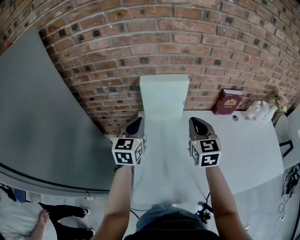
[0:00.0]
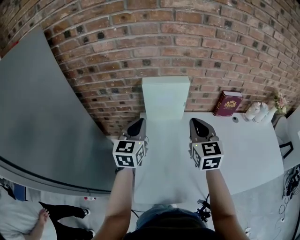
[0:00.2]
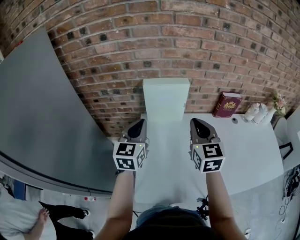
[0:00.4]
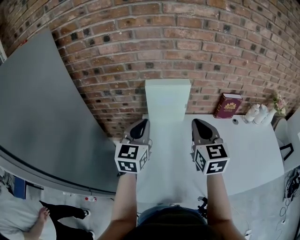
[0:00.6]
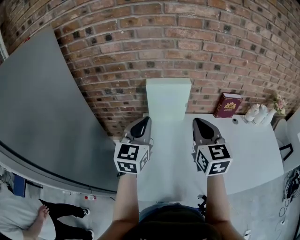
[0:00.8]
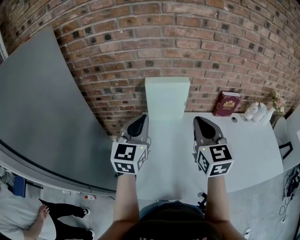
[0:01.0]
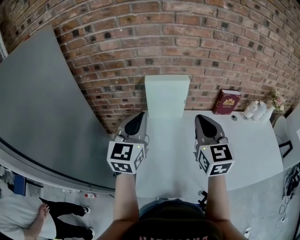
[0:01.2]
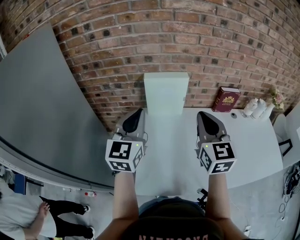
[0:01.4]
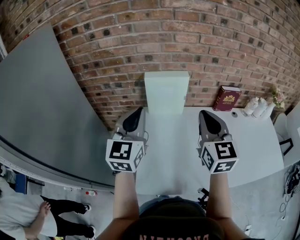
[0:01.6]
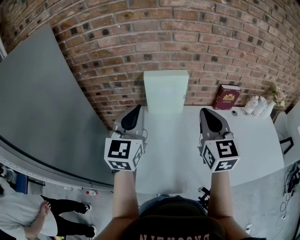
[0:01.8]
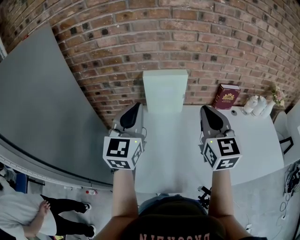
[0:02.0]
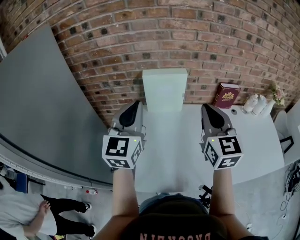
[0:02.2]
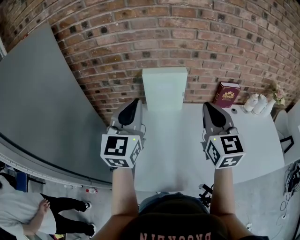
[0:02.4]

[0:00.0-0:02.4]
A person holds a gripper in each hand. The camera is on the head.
0:00.0 to 0:01.2: Both grippers travel together upward and backward, approximately 15 cm.
0:01.2 to 0:02.4: The grippers stay close to where they were, moving slightly.

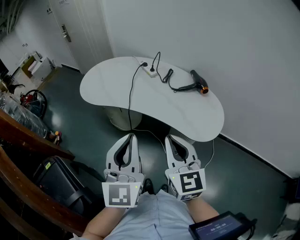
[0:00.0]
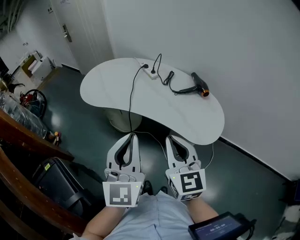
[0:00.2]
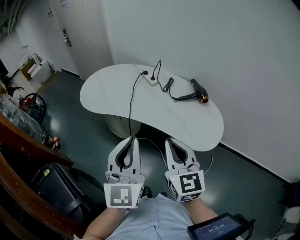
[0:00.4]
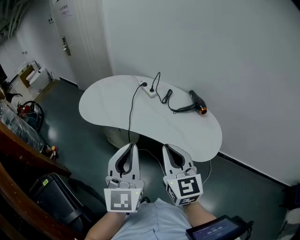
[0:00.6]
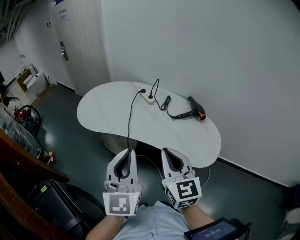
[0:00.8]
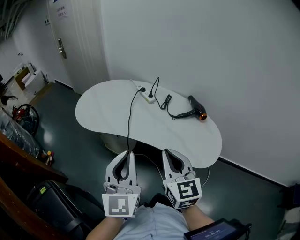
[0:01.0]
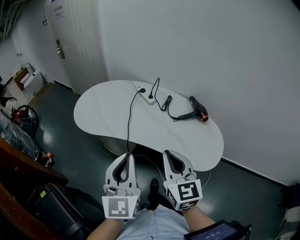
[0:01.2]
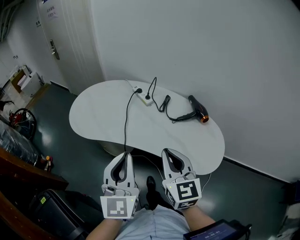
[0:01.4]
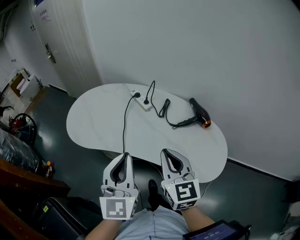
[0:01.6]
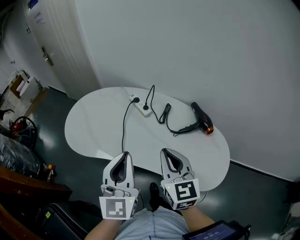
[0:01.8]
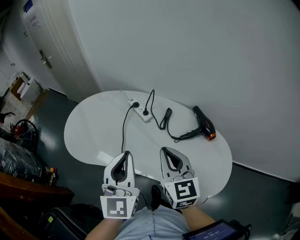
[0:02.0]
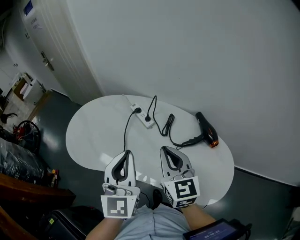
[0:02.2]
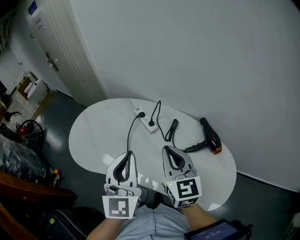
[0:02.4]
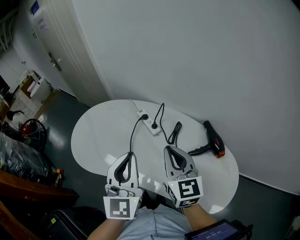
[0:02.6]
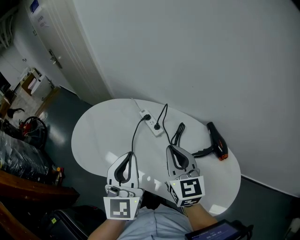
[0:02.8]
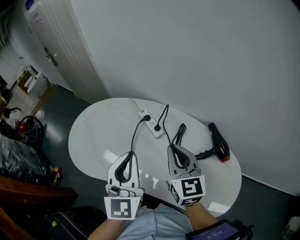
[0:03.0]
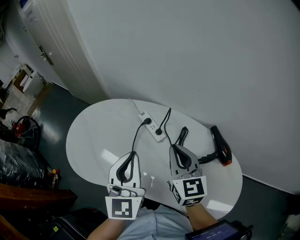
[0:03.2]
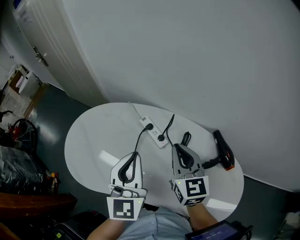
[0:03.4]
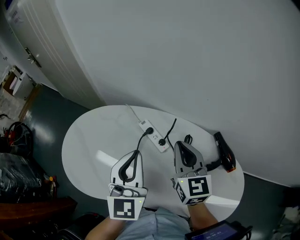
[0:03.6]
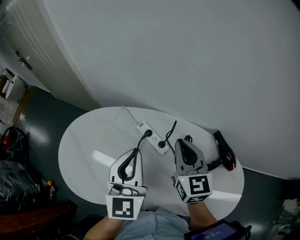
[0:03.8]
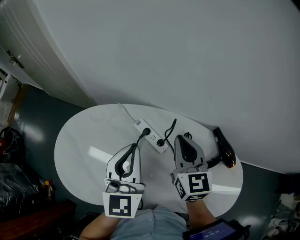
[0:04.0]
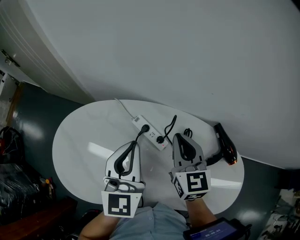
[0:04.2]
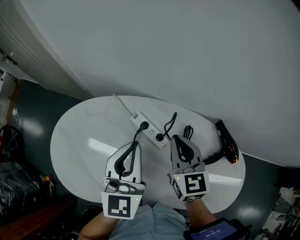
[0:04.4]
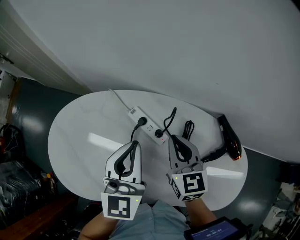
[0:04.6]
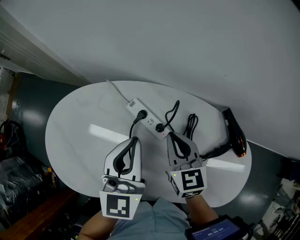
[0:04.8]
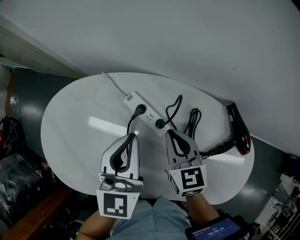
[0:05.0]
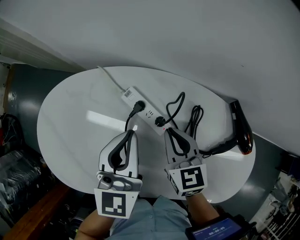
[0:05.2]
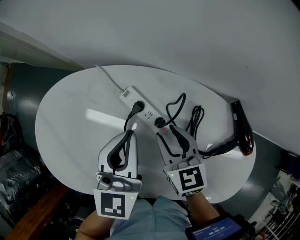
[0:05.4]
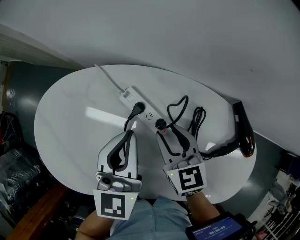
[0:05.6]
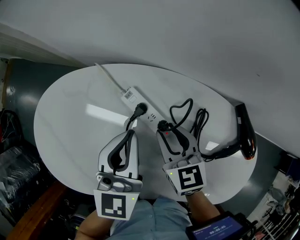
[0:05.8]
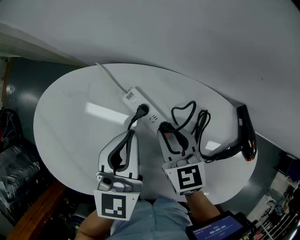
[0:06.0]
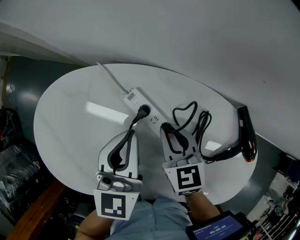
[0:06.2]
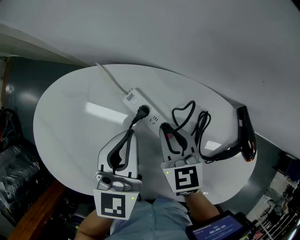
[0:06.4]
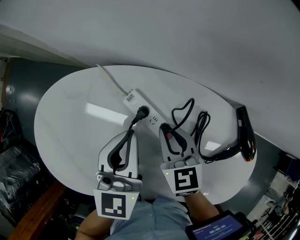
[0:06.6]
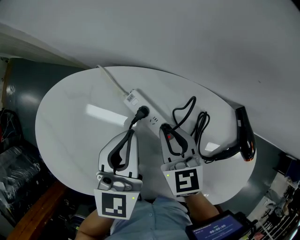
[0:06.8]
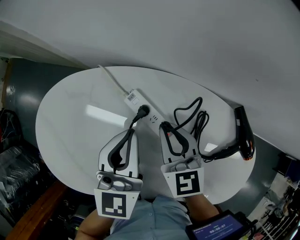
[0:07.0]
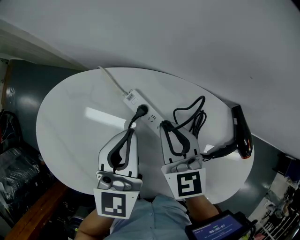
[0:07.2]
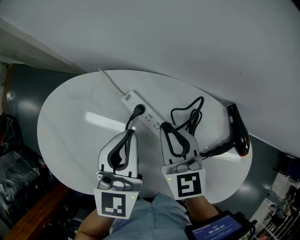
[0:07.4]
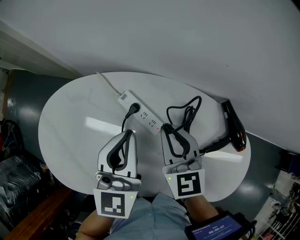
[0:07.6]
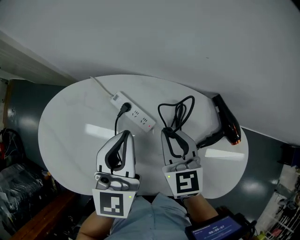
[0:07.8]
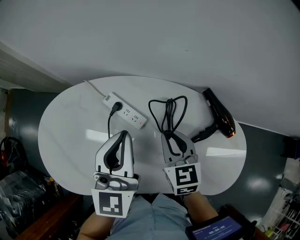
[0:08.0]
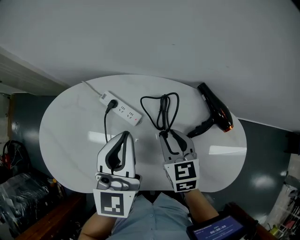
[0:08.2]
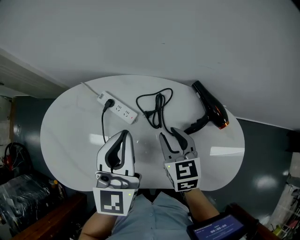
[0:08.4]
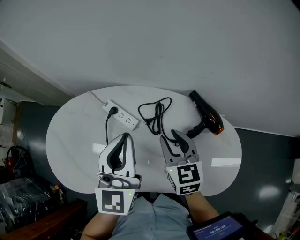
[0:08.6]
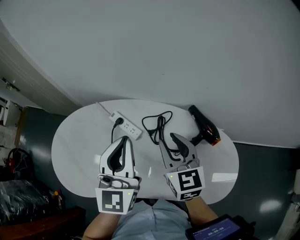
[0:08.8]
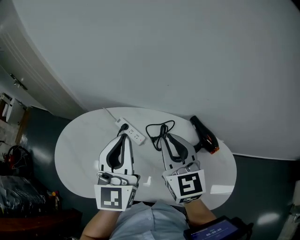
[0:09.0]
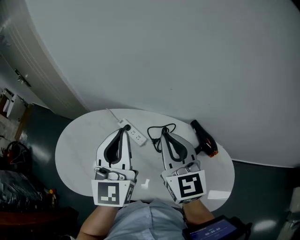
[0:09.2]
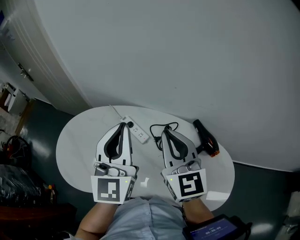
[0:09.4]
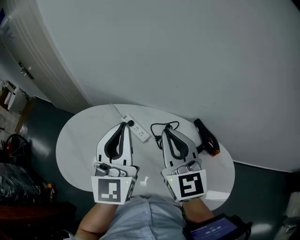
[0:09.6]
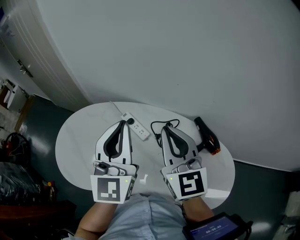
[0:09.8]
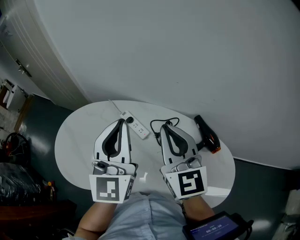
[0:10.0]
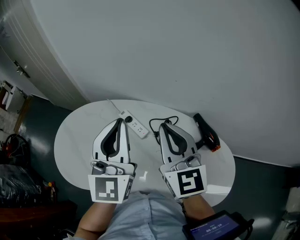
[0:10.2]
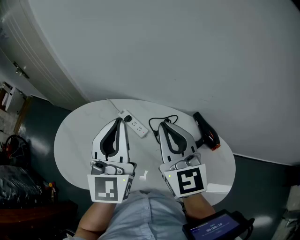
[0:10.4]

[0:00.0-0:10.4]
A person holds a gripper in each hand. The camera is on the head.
0:00.0 to 0:01.4: The two grippers go roughly 15 cm forward.
0:01.4 to 0:03.0: Both grippers travel together forward, approximately 25 cm.
0:03.0 to 0:04.4: The left gripper goes roughly 15 cm forward. The right gripper heads forward and downward, covering about 15 cm.
0:04.4 to 0:06.0: The two grippers go roughly 10 cm downward. The right gripper opens up.
0:06.0 to 0:07.4: The right gripper goes roughly 10 cm upward.
0:07.4 to 0:09.0: The left gripper travels upward, backward and to the right by approximately 20 cm, and swivels roughly 30 degrees. Meanwhile the right gripper heads upward, to the right and backward, covering roughly 20 cm.
0:09.0 to 0:10.4: The right gripper travels upward by some 5 cm.

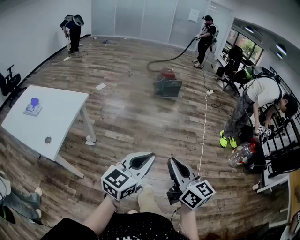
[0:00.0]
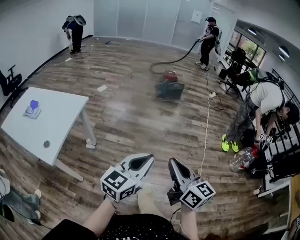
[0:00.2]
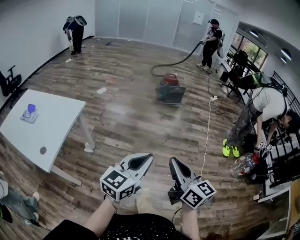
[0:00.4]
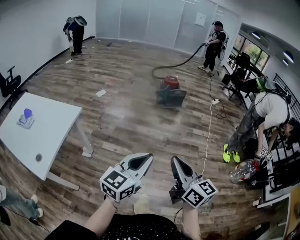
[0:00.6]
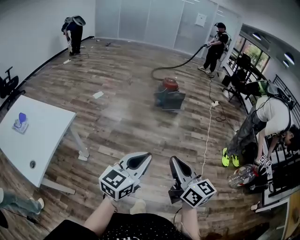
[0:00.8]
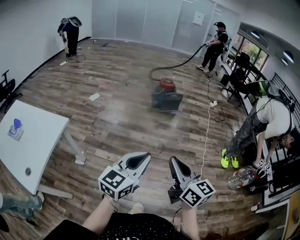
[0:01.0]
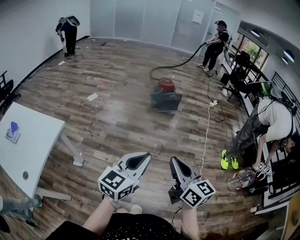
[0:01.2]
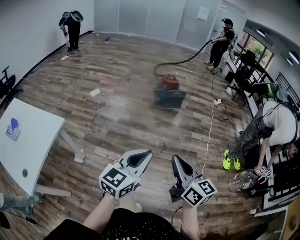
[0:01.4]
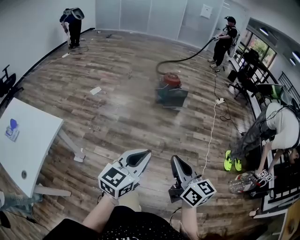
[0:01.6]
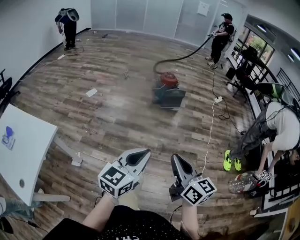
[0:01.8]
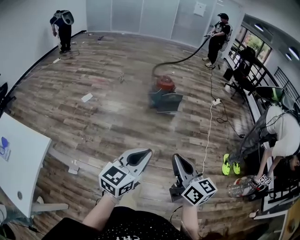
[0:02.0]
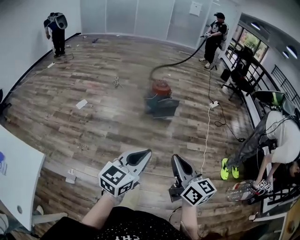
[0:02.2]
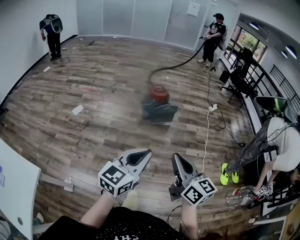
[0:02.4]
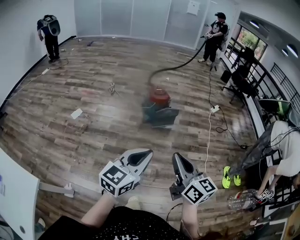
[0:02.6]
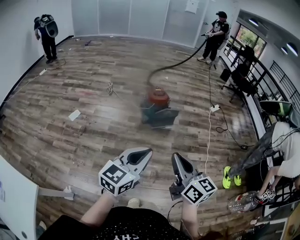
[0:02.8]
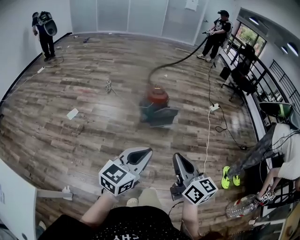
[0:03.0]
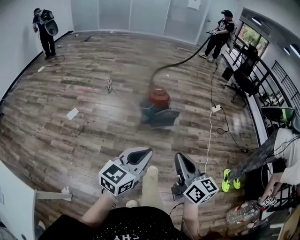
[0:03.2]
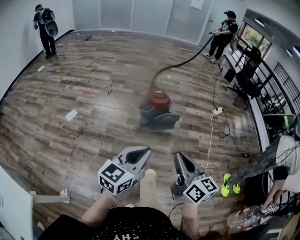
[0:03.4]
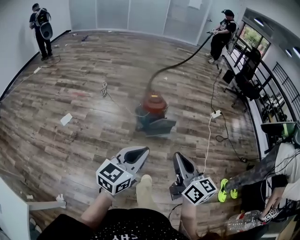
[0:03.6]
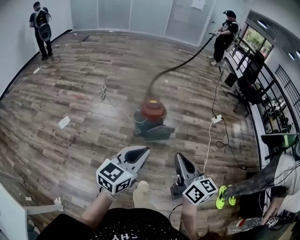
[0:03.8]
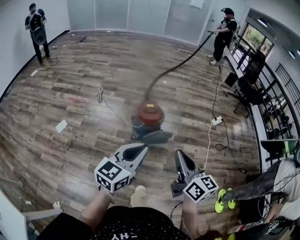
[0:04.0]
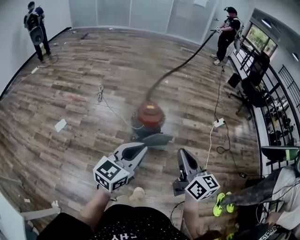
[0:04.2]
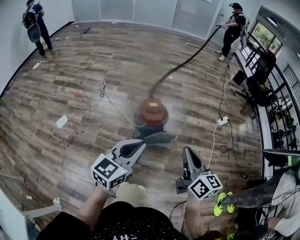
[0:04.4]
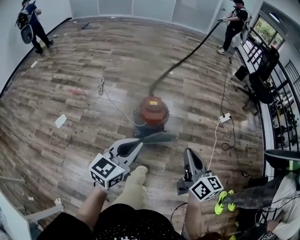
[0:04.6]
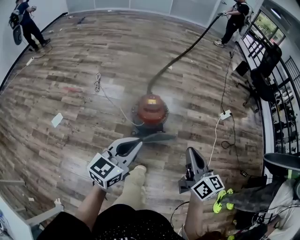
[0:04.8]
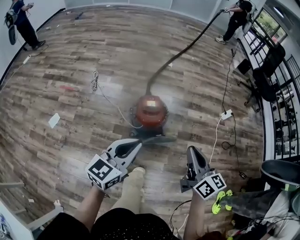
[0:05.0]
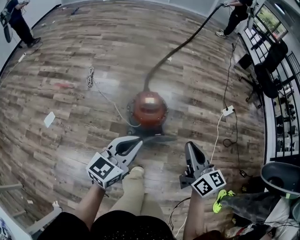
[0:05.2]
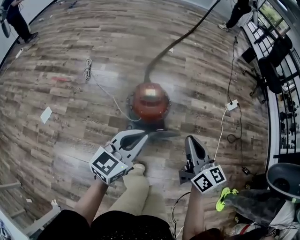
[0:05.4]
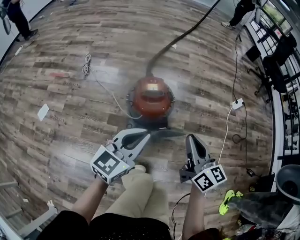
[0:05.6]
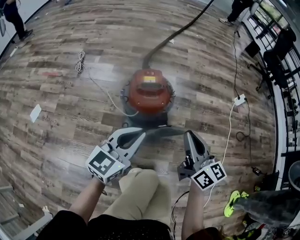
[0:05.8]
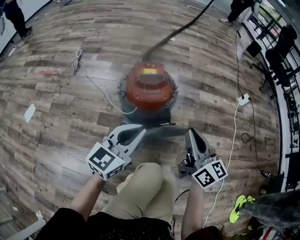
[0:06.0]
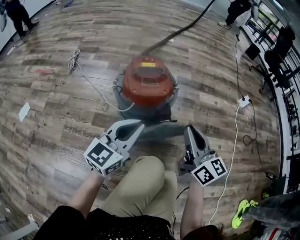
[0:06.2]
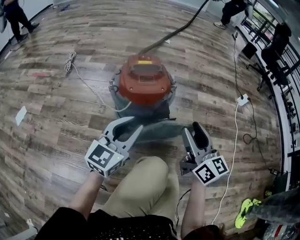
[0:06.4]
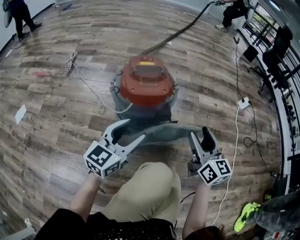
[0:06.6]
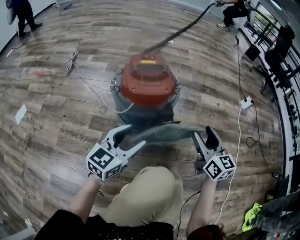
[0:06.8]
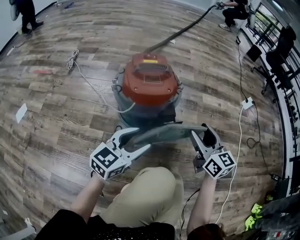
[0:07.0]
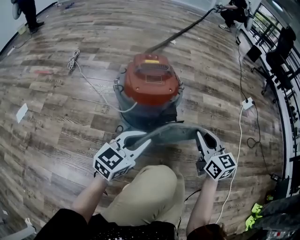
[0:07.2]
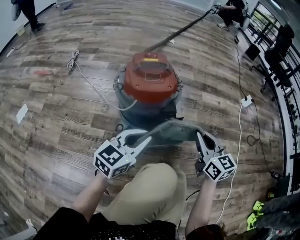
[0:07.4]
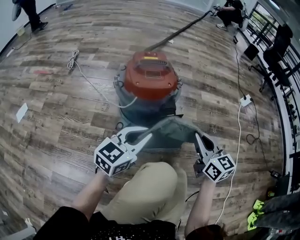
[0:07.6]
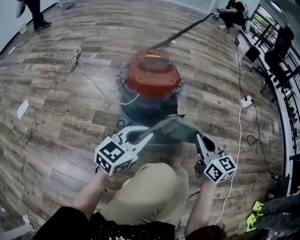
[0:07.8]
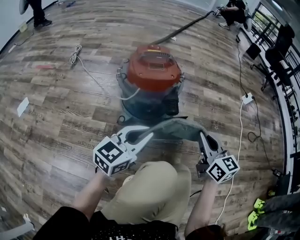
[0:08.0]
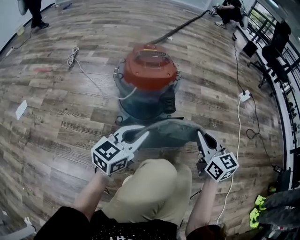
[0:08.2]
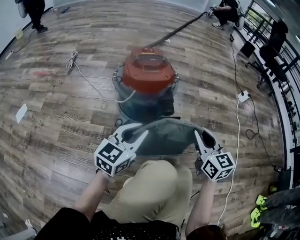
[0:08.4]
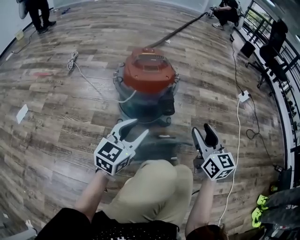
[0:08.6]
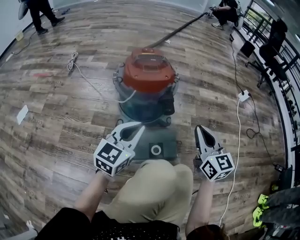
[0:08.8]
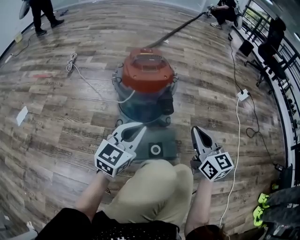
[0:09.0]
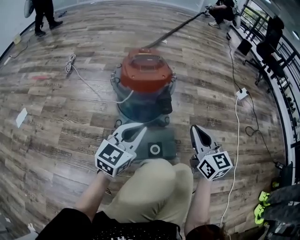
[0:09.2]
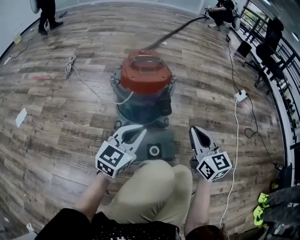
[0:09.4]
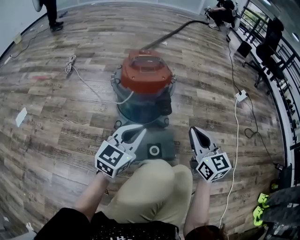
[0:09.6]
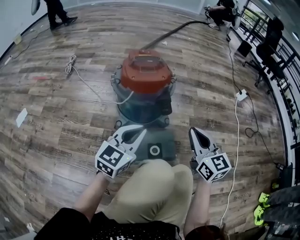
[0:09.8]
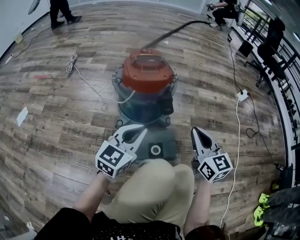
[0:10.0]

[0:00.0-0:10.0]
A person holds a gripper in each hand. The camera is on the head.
0:00.0 to 0:01.4: Both grippers travel together forward, roughly 35 cm.
0:01.4 to 0:02.8: The pair of grippers is taken forward, some 50 cm.
0:02.8 to 0:04.2: The two grippers travel together, forward, about 40 cm.
0:04.2 to 0:05.8: Both grippers travel together downward and forward, approximately 40 cm.
0:05.8 to 0:07.2: Both grippers move downward, about 25 cm. The left gripper opens and closes again; the right gripper rotates roughly 20 degrees, and opens and closes again.
0:07.2 to 0:08.6: The right gripper is displaced backward by approximately 5 cm, and opens its fingers. Meanwhile the left gripper opens its fingers.
0:08.6 to 0:10.0: The left gripper closes its fingers. Meanwhile the right gripper closes its fingers.

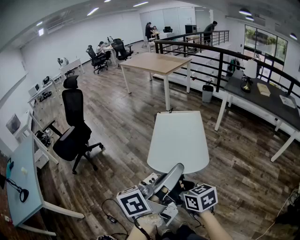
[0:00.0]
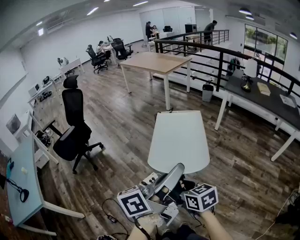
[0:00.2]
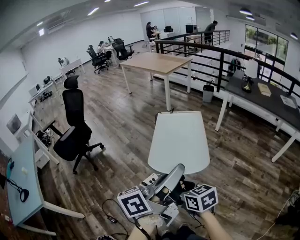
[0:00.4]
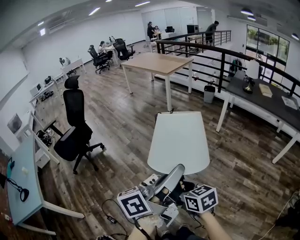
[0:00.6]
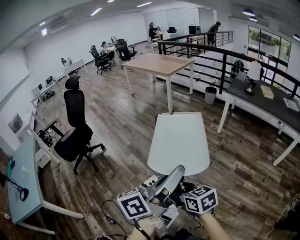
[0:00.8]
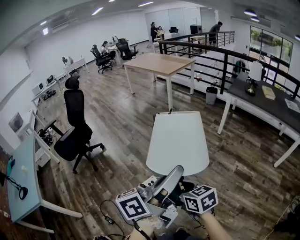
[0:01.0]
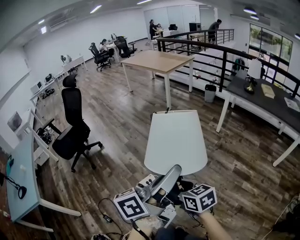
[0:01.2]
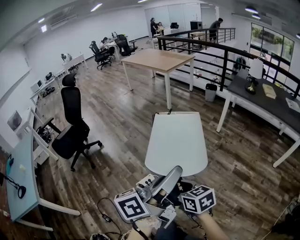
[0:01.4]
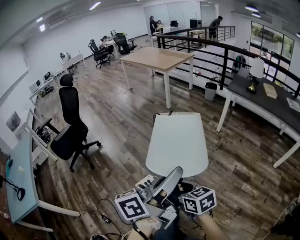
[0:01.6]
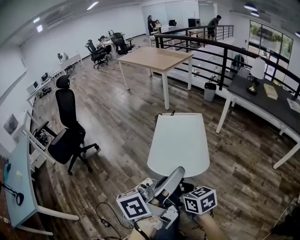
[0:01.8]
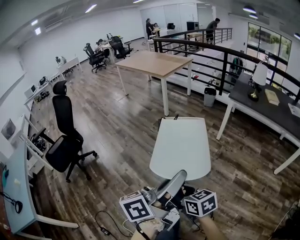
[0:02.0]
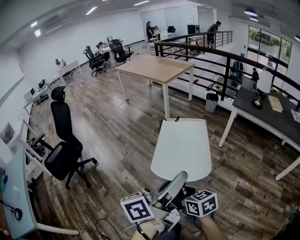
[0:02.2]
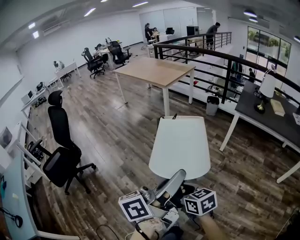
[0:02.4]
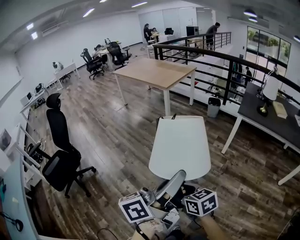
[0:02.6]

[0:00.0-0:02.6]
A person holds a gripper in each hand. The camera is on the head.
0:00.0 to 0:01.2: The left gripper shifts by about 5 cm, while the right gripper shifts by approximately 5 cm.
0:01.2 to 0:02.6: The two grippers go about 35 cm forward.
